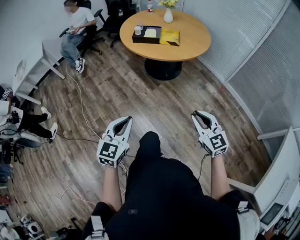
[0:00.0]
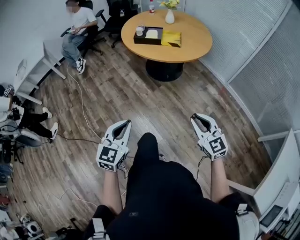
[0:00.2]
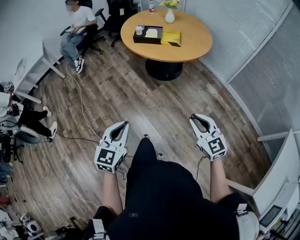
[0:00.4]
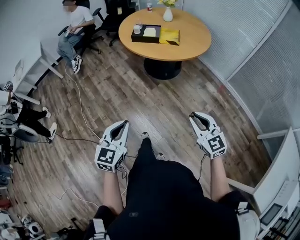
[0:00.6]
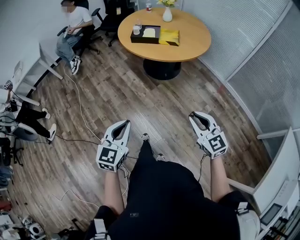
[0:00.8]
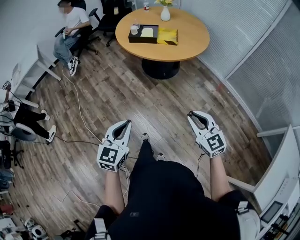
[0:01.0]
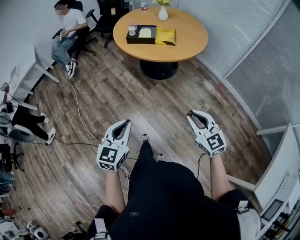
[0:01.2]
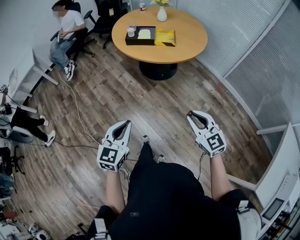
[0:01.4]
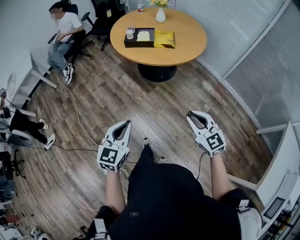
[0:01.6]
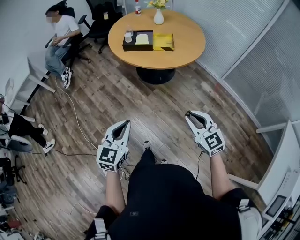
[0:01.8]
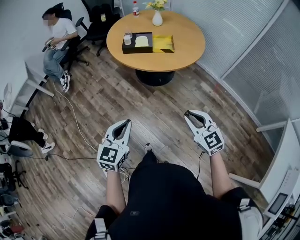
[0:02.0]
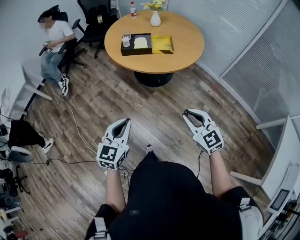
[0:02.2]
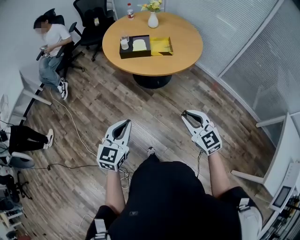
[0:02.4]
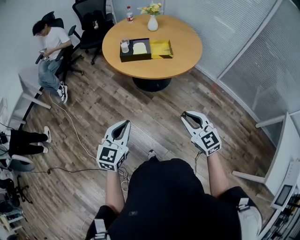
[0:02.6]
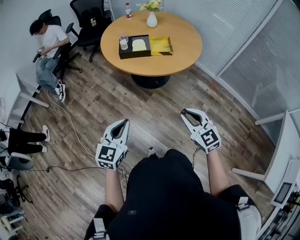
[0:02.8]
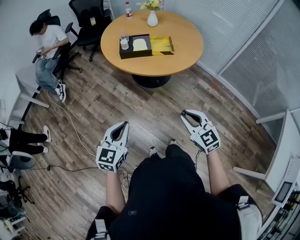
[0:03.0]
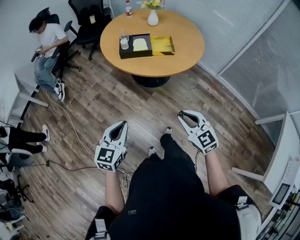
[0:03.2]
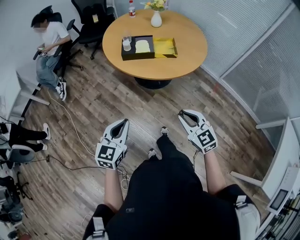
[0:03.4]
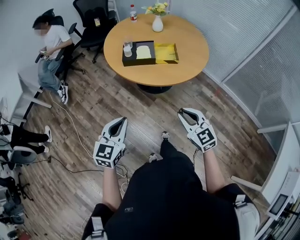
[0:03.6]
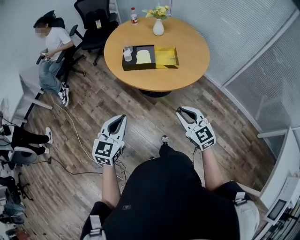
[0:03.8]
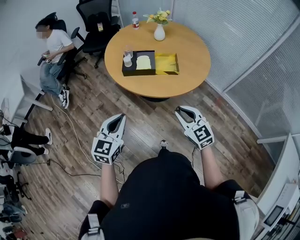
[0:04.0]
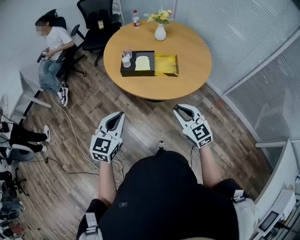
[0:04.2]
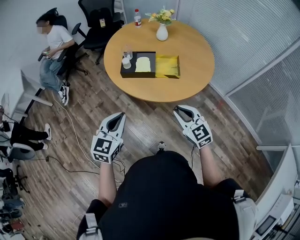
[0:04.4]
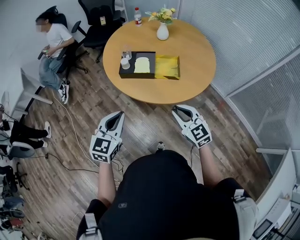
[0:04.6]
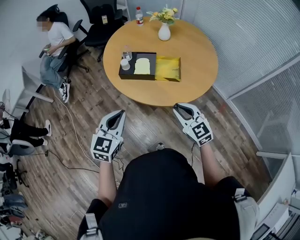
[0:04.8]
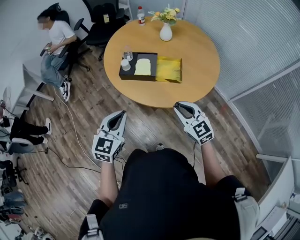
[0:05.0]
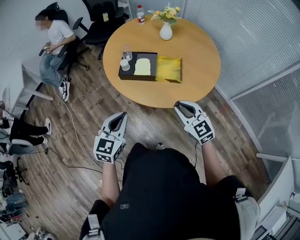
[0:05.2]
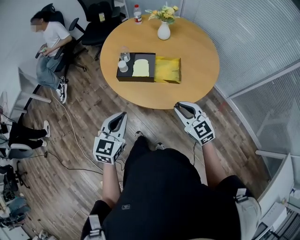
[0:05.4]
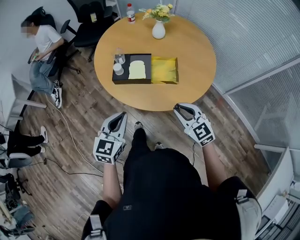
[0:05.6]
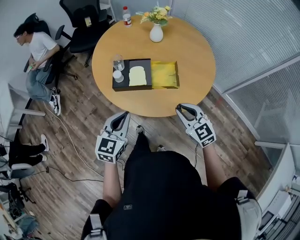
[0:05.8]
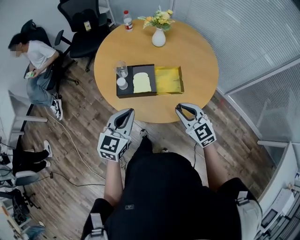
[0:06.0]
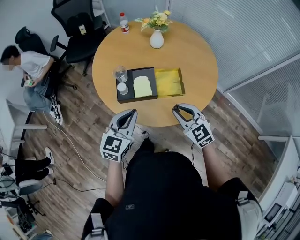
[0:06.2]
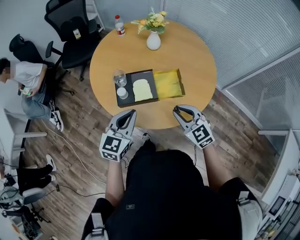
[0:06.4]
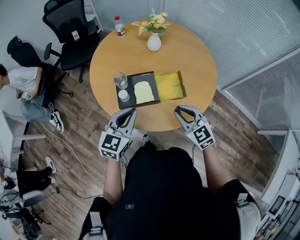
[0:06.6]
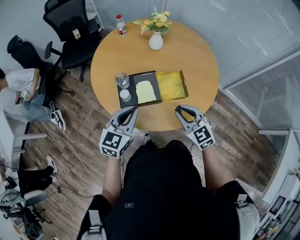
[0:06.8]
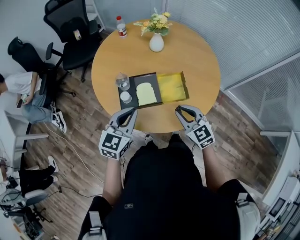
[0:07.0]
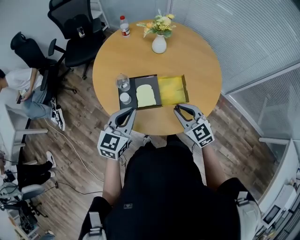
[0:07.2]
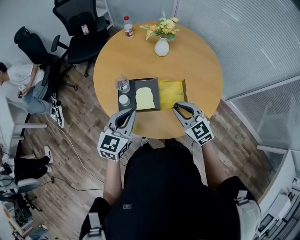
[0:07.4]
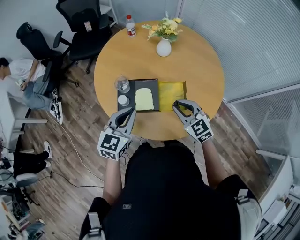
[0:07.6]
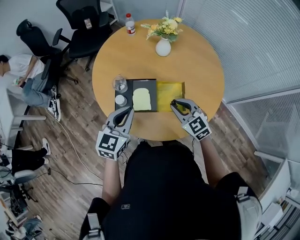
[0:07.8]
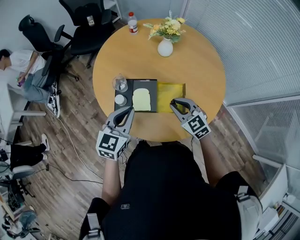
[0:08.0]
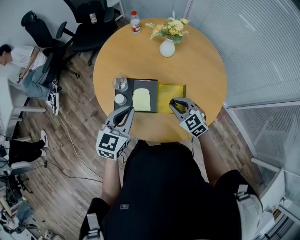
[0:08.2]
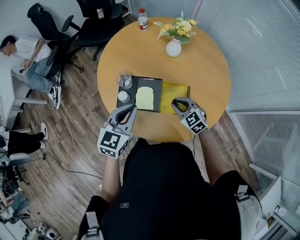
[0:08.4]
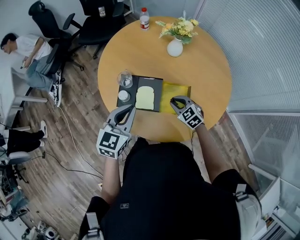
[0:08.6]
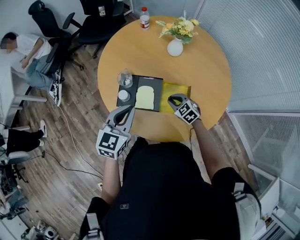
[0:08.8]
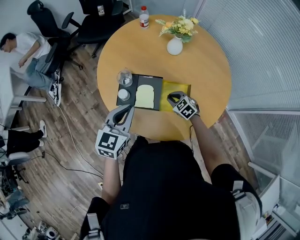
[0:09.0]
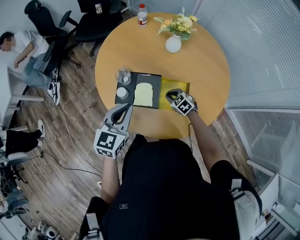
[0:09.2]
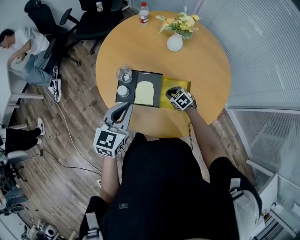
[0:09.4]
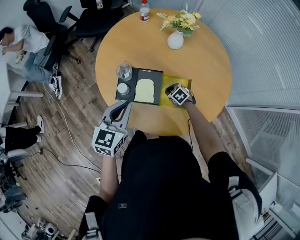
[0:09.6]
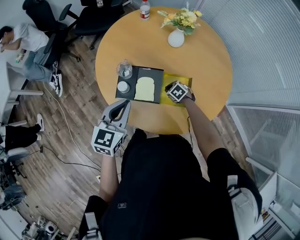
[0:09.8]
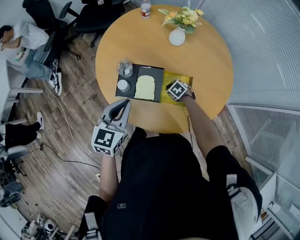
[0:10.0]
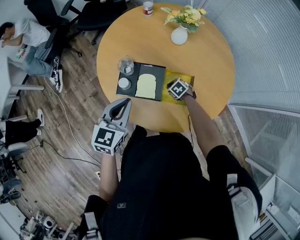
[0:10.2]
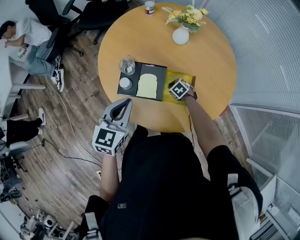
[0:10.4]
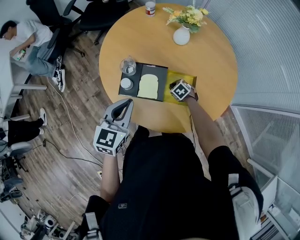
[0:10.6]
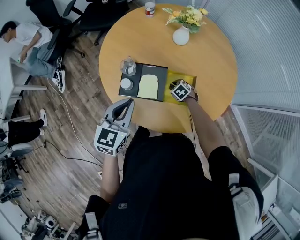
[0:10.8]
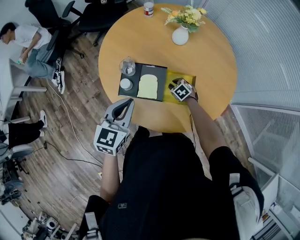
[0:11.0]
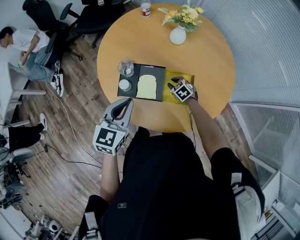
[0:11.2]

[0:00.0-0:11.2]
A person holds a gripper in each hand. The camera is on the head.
0:00.0 to 0:01.6: The two grippers go about 10 cm forward.
0:01.6 to 0:03.2: The two grippers go about 20 cm forward and to the left.
0:03.2 to 0:04.8: The right gripper is displaced forward by roughly 25 cm. The left gripper moves forward and to the right, some 25 cm.
0:04.8 to 0:06.4: Both grippers move forward, approximately 20 cm.
0:06.4 to 0:08.0: The right gripper is displaced forward by roughly 15 cm. The left gripper heads forward, covering some 10 cm.
0:08.0 to 0:09.6: The right gripper travels downward by some 25 cm, and tips its fingers downward by roughly 30 degrees.
0:09.6 to 0:11.2: There are only small adjustments of the grippers.

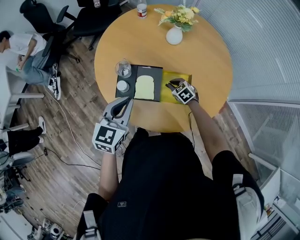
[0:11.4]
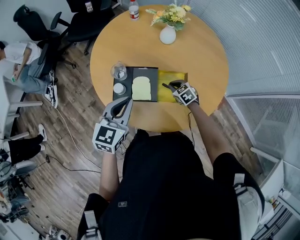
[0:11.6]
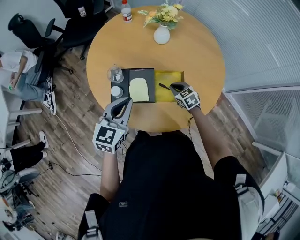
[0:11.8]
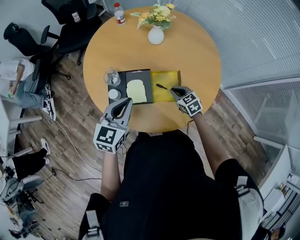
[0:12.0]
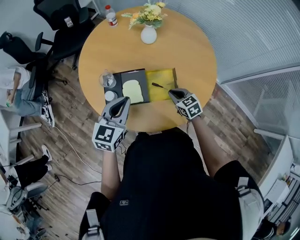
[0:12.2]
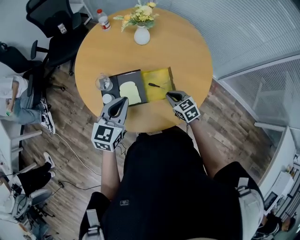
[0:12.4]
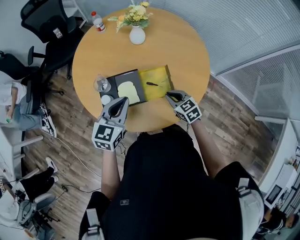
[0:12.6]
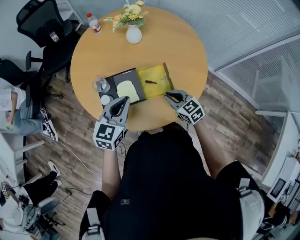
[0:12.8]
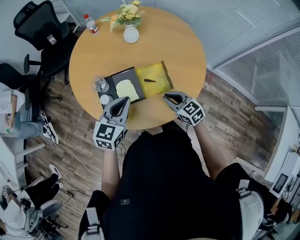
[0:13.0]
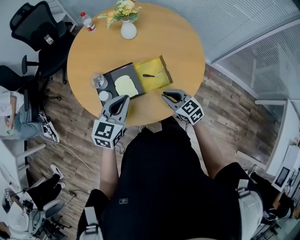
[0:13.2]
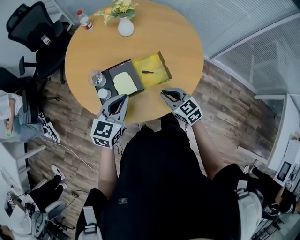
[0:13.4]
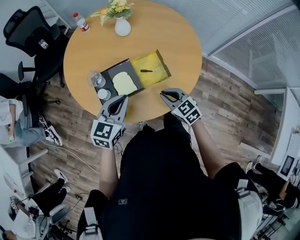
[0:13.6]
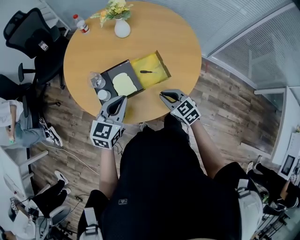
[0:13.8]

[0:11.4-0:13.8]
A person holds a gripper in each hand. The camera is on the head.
0:11.4 to 0:12.6: The left gripper is displaced to the right by roughly 5 cm, while the right gripper travels backward, upward and to the right by roughly 15 cm, and changes its angle by approximately 30 degrees.
0:12.6 to 0:13.8: The left gripper shifts by roughly 5 cm. Meanwhile the right gripper goes approximately 10 cm backward.

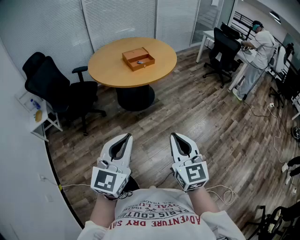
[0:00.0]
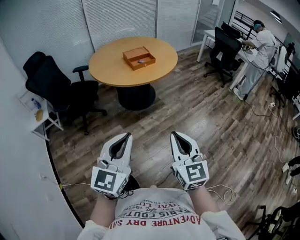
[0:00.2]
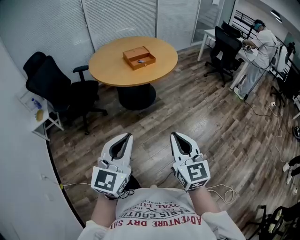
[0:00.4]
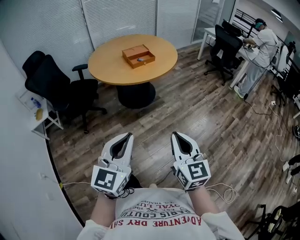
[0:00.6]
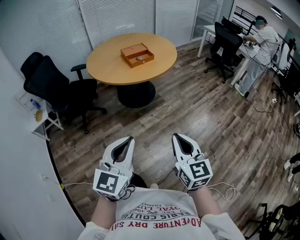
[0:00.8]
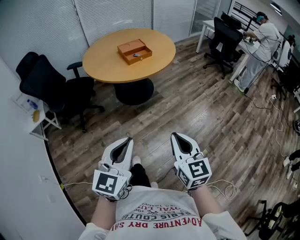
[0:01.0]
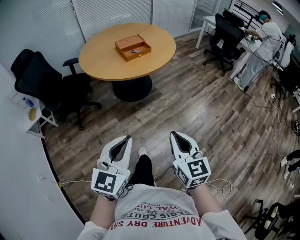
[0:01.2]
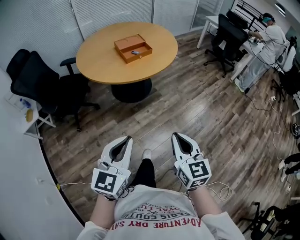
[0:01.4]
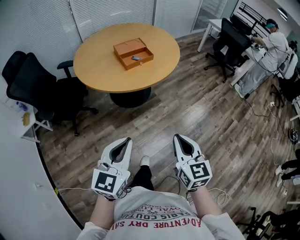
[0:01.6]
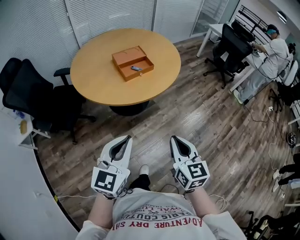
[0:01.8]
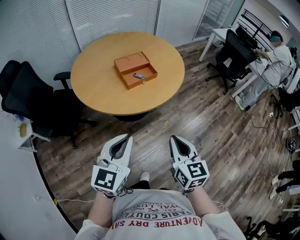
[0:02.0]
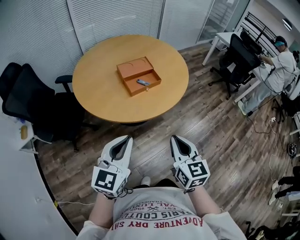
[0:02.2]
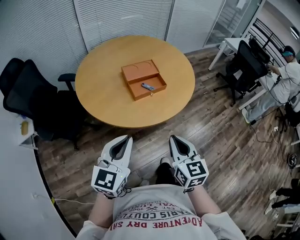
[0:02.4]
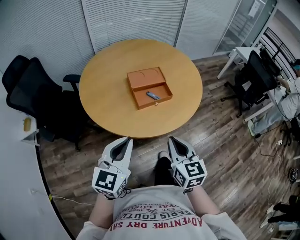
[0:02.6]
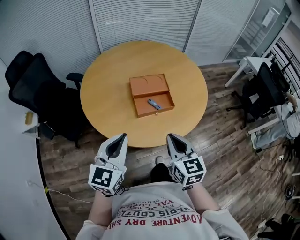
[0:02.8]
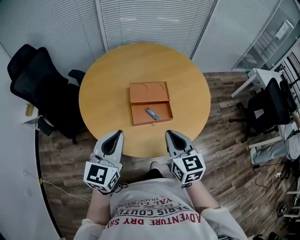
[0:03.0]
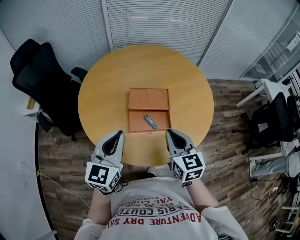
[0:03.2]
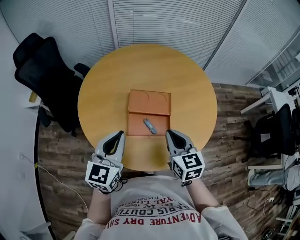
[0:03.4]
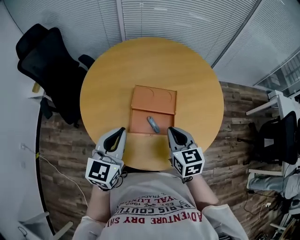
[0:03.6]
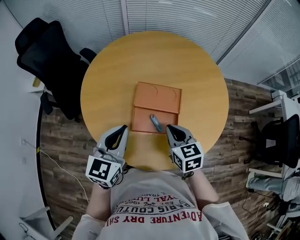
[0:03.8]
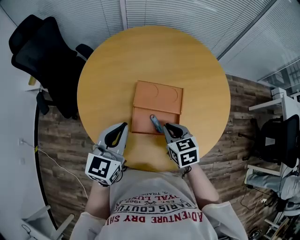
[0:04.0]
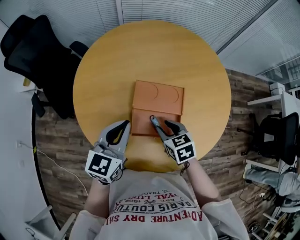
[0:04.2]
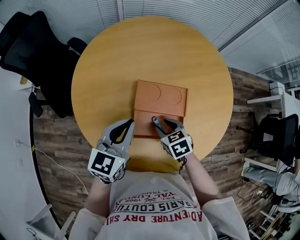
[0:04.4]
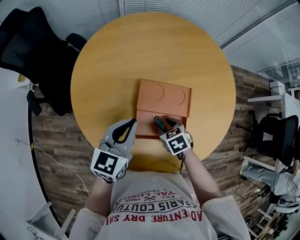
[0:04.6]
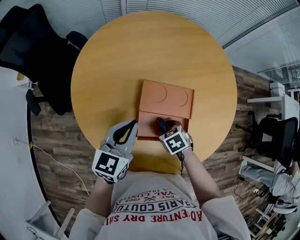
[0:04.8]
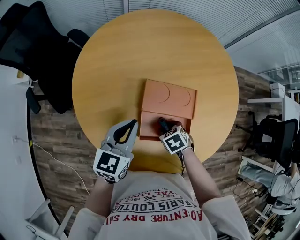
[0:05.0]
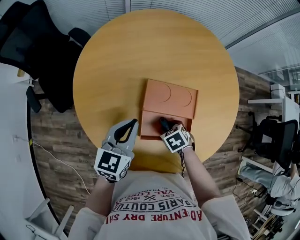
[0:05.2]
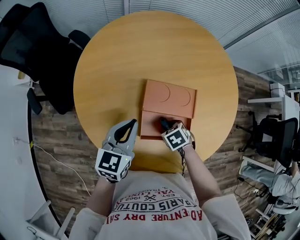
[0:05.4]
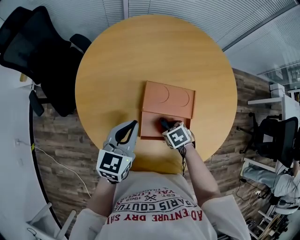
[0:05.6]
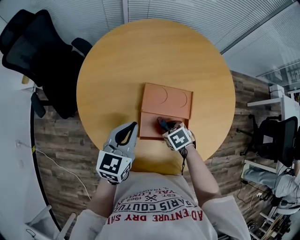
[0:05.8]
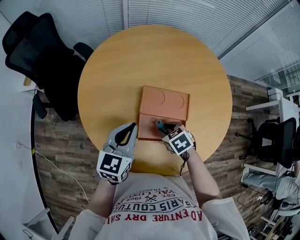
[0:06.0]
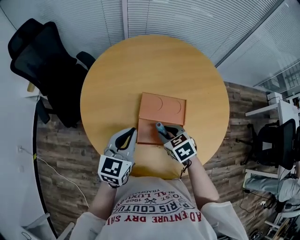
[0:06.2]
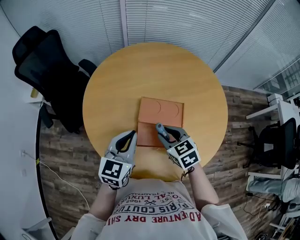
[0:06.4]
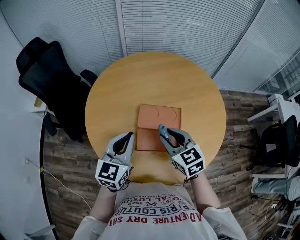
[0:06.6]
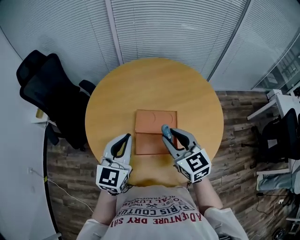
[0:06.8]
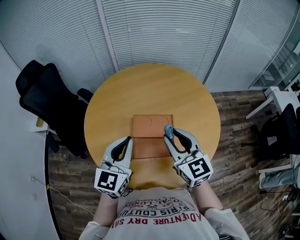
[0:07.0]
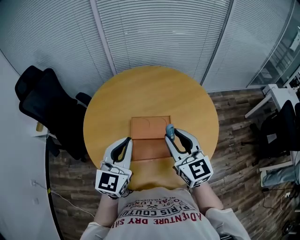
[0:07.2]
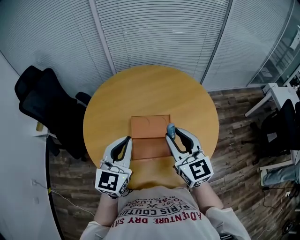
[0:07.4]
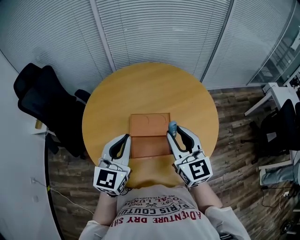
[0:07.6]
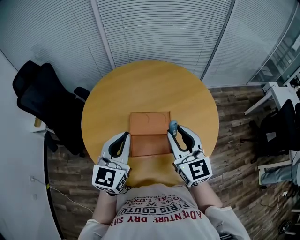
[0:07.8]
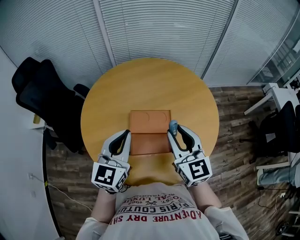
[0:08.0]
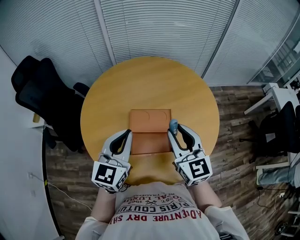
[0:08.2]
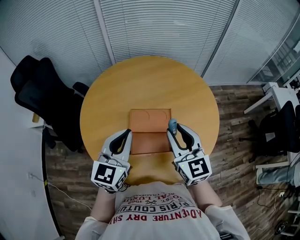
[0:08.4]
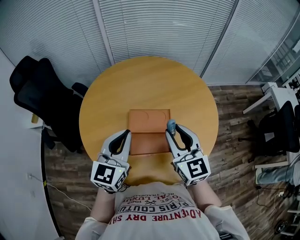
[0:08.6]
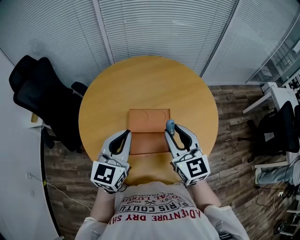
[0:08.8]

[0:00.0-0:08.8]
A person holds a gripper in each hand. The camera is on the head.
0:00.0 to 0:01.4: Both grippers move forward and downward, some 15 cm.
0:01.4 to 0:03.0: The two grippers travel together, about 50 cm. The left gripper rotates about 30 degrees. Meanwhile the right gripper turns by roughly 20 degrees.
0:03.0 to 0:04.4: The right gripper is displaced downward and forward by some 30 cm, tips its fingers downward by roughly 40 degrees, and opens its fingers. The left gripper is displaced forward and downward by roughly 20 cm.
0:05.8 to 0:07.4: The right gripper moves upward, some 35 cm, and points its fingers about 60 degrees further upward, while the left gripper goes approximately 15 cm upward, and swivels roughly 20 degrees.
0:07.4 to 0:08.8: The grippers make only small movements.

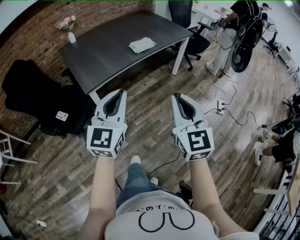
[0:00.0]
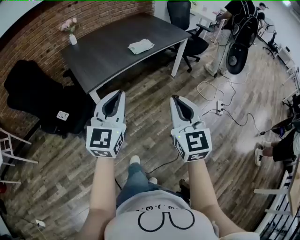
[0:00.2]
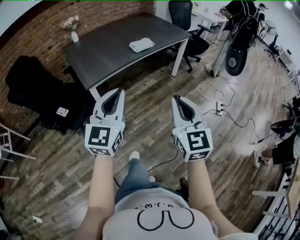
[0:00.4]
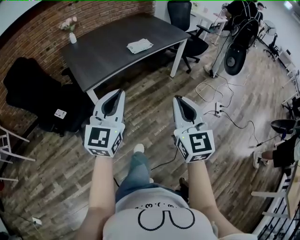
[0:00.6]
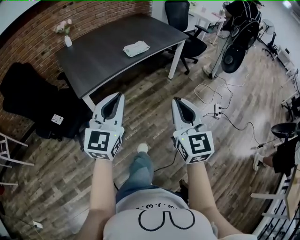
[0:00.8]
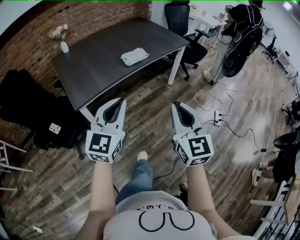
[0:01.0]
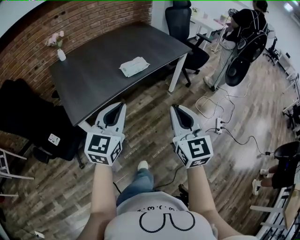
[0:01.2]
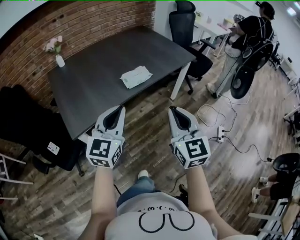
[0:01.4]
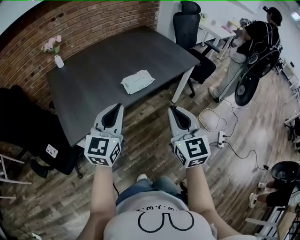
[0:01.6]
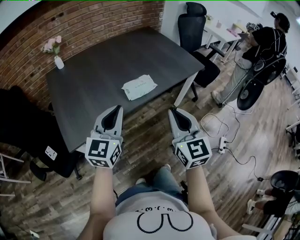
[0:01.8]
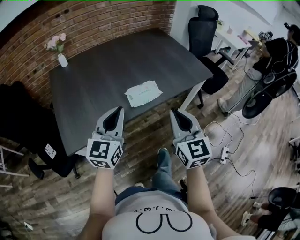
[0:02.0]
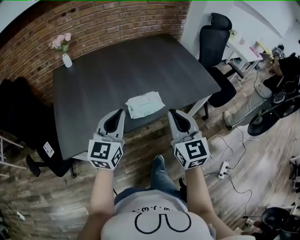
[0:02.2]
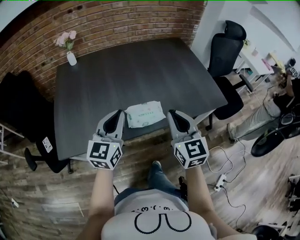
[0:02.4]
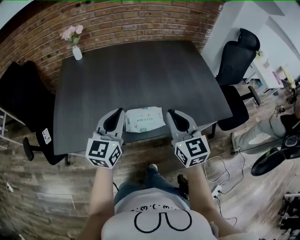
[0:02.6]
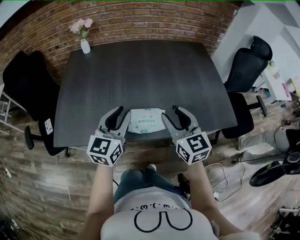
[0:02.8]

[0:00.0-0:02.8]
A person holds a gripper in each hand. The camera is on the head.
0:00.0 to 0:01.4: Both grippers travel together forward, approximately 25 cm.
0:01.4 to 0:02.8: The right gripper changes place by roughly 50 cm, changes its angle by approximately 40 degrees, and opens up, while the left gripper moves roughly 35 cm, changes its angle by some 30 degrees, and opens.
